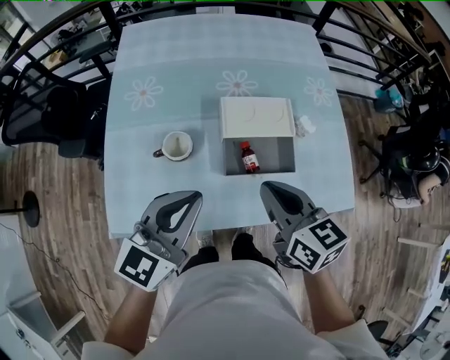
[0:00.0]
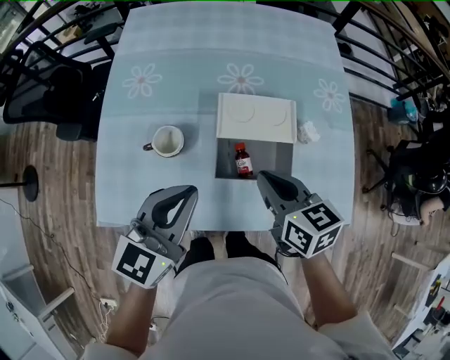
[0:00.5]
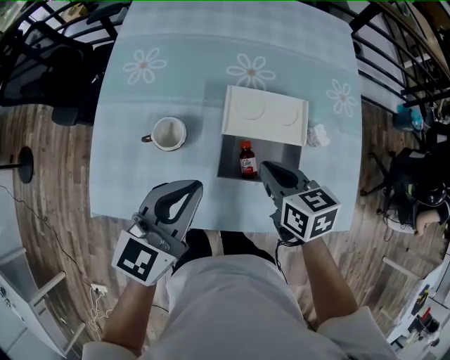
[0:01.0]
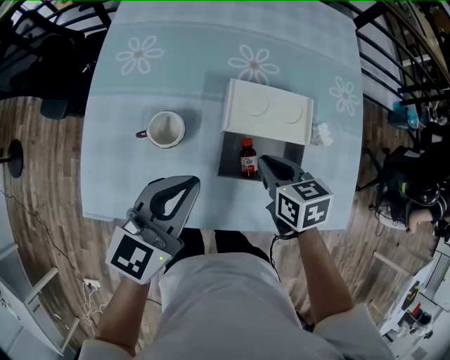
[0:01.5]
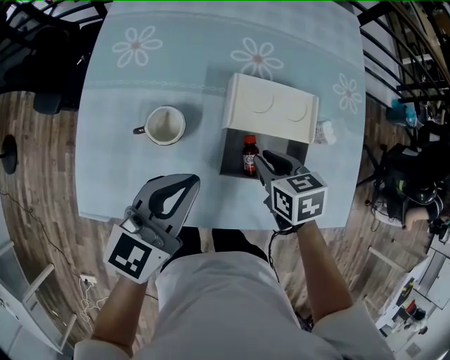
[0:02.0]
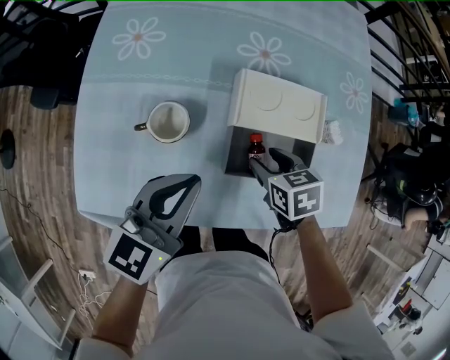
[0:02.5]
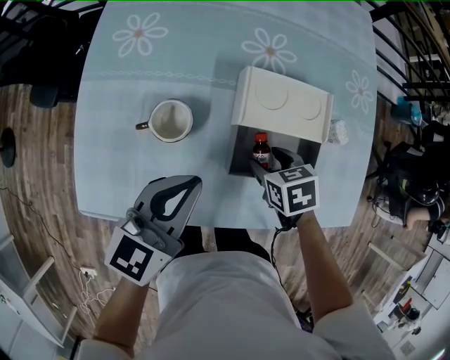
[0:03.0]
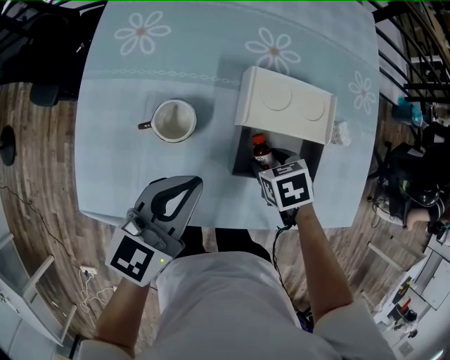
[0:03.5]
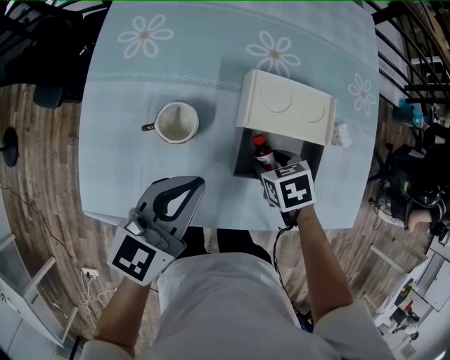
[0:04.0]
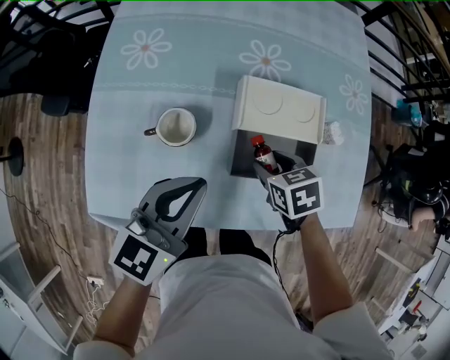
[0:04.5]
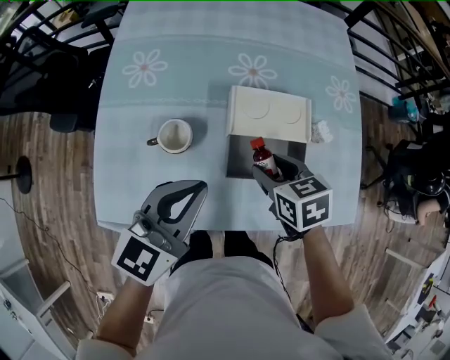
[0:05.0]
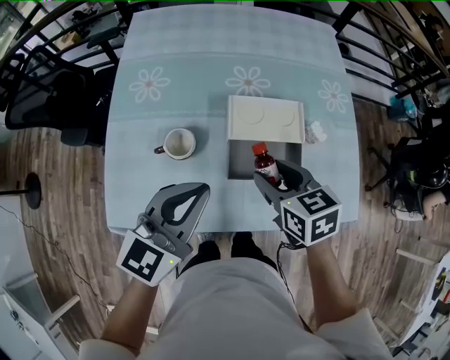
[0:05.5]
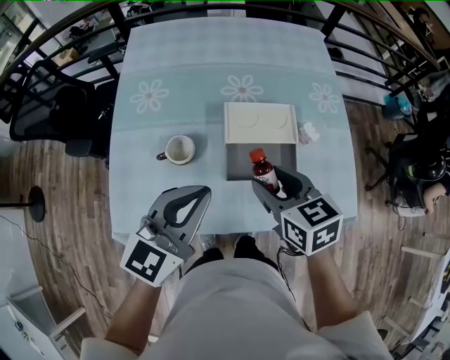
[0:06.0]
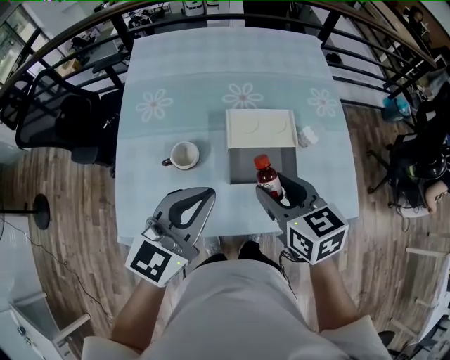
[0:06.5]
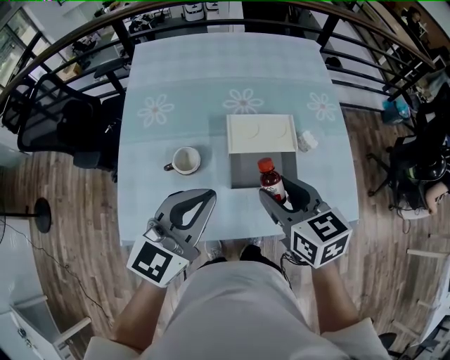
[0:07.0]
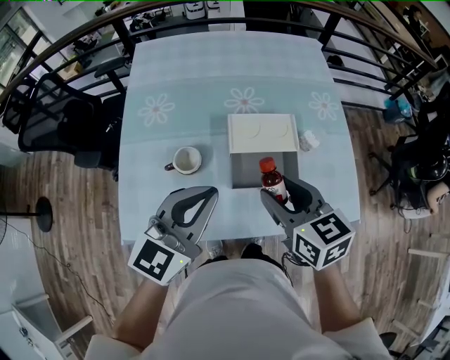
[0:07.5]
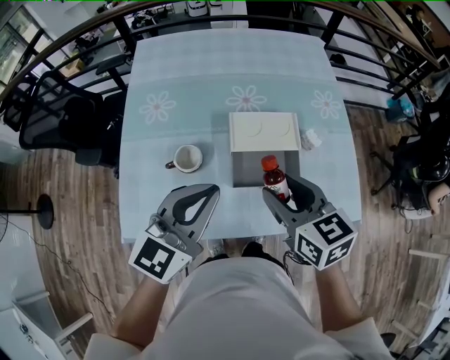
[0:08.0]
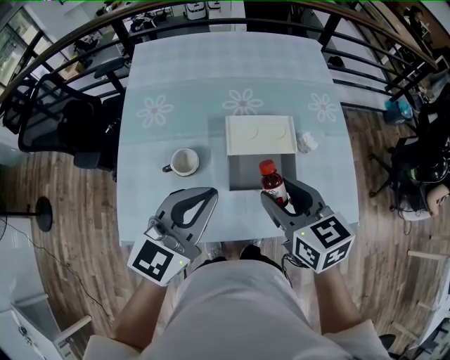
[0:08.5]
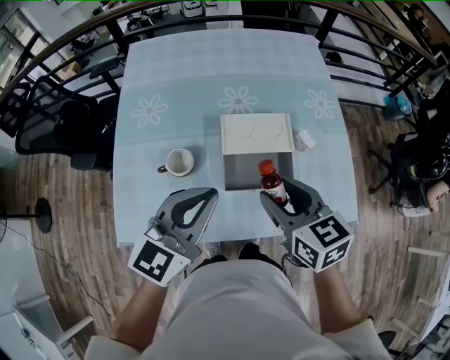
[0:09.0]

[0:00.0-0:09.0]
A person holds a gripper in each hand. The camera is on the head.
0:00.0 to 0:02.0: The right gripper travels downward and forward by about 20 cm, and swivels approximately 30 degrees. The left gripper moves downward and forward, about 10 cm.
0:02.0 to 0:04.5: The right gripper opens up.
0:04.5 to 0:07.0: The right gripper travels upward by approximately 20 cm, and tilts its fingers some 30 degrees upward, while the left gripper moves upward, some 10 cm.
0:07.0 to 0:09.0: The grippers make only small movements.

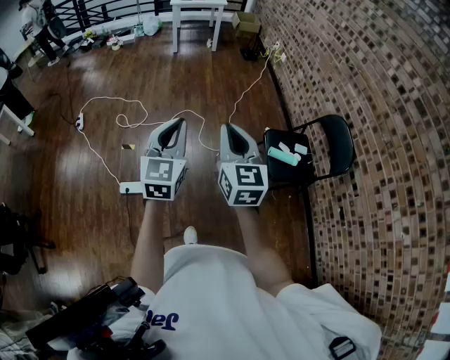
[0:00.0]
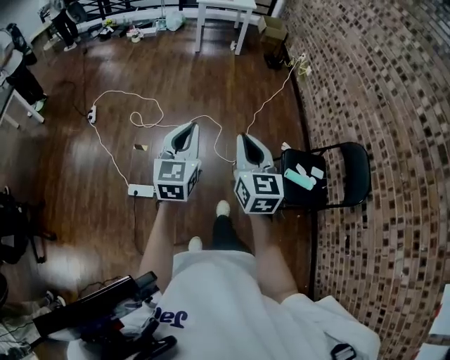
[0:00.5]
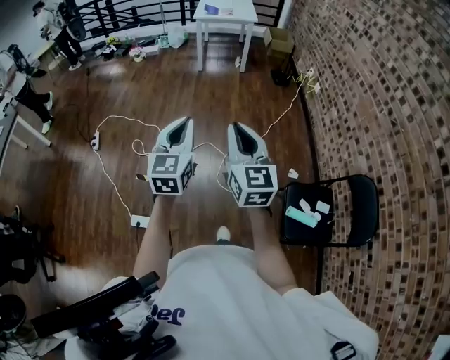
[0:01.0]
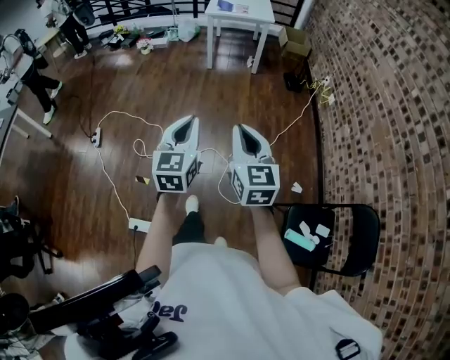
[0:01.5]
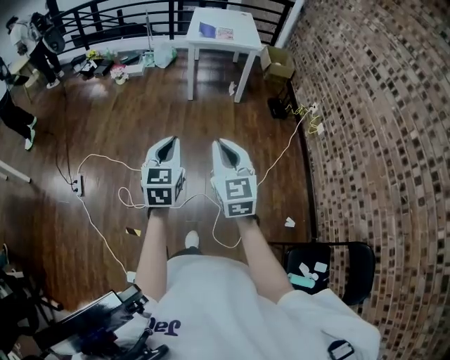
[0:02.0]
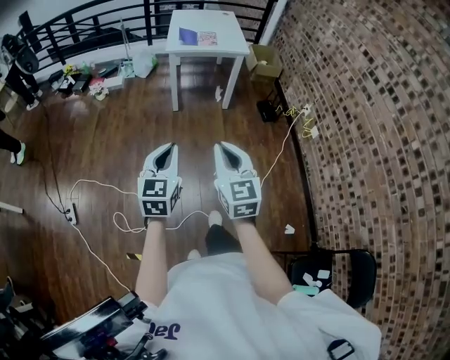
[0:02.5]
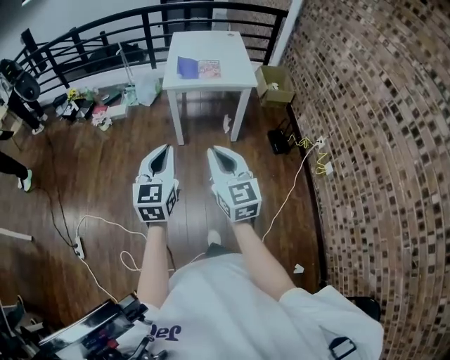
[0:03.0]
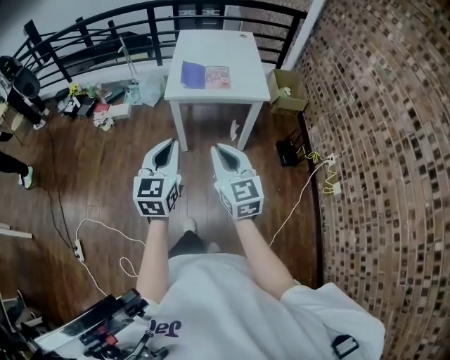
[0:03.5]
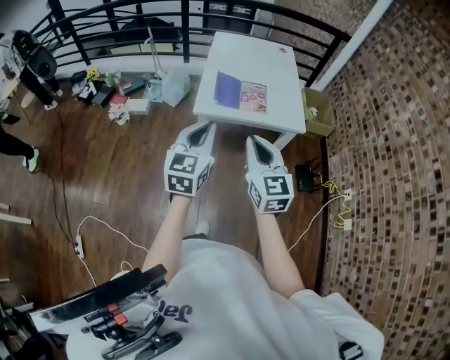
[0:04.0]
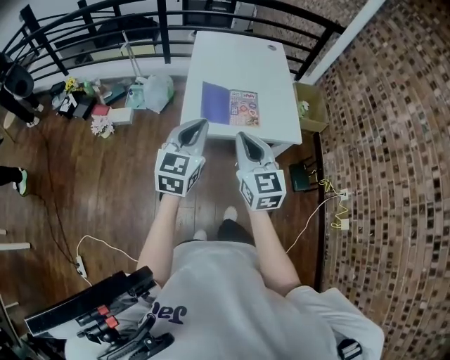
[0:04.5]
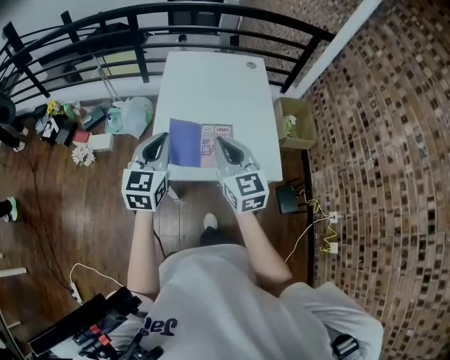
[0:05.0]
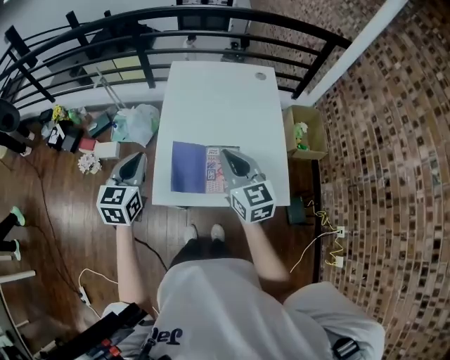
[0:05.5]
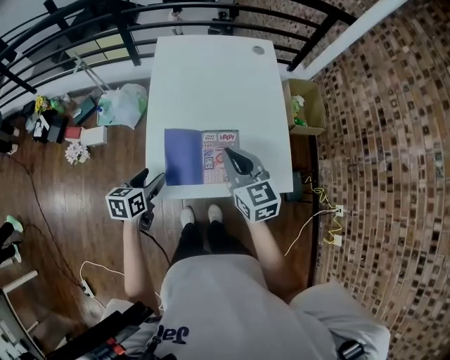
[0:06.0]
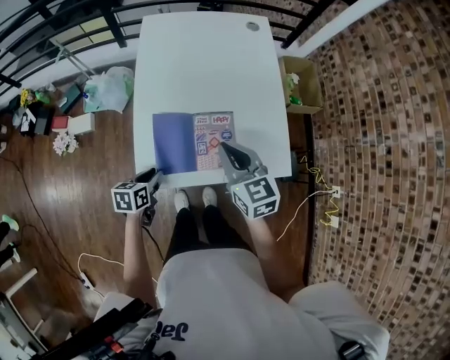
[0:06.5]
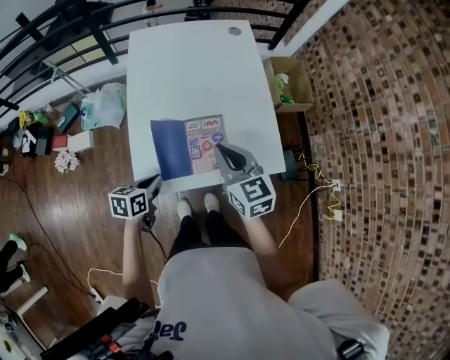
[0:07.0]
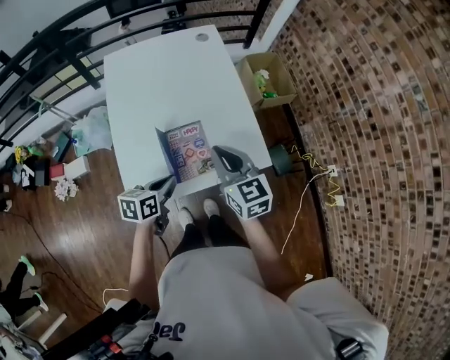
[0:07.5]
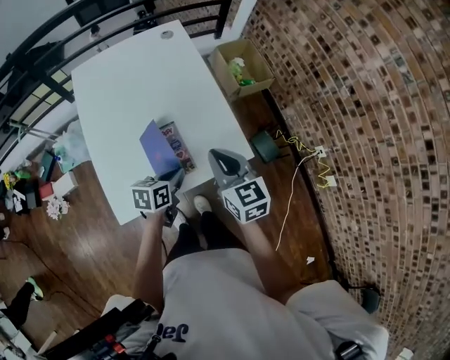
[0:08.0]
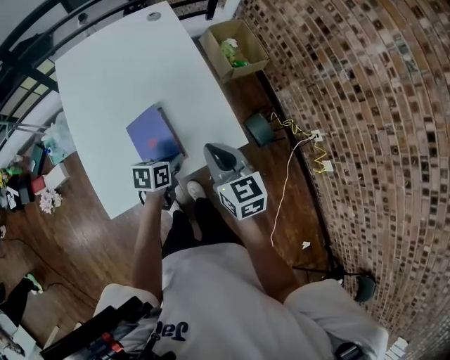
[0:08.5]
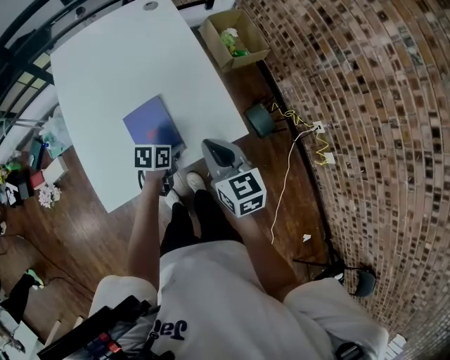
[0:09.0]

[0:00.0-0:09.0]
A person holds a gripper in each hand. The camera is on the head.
0:00.0 to 0:02.0: The two grippers travel together, forward, some 80 cm.
0:02.0 to 0:04.5: The pair of grippers is taken forward, roughly 90 cm.
0:04.5 to 0:07.0: The right gripper travels forward and downward by some 30 cm; the left gripper is displaced downward and forward by approximately 30 cm, tips its fingers downward by roughly 30 degrees, and opens, then closes again.
0:07.0 to 0:09.0: The right gripper shifts some 15 cm to the right, while the left gripper moves to the right and forward, about 25 cm, and swivels some 30 degrees.

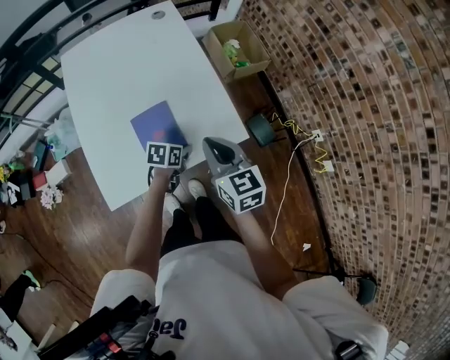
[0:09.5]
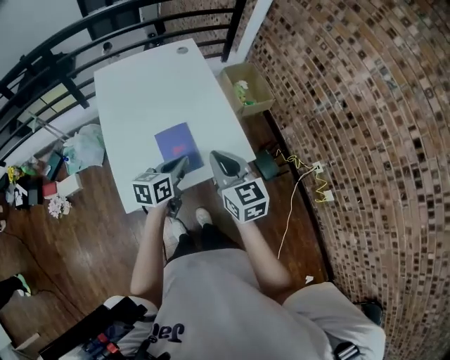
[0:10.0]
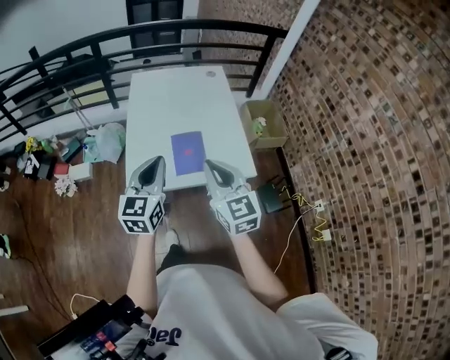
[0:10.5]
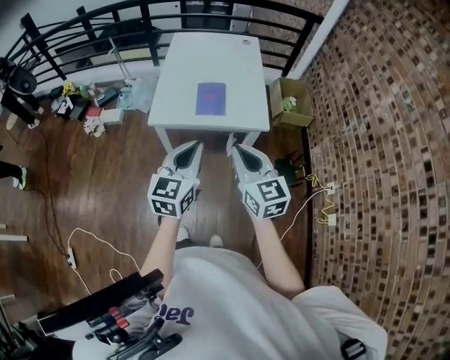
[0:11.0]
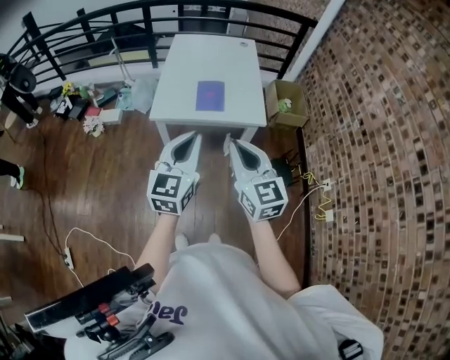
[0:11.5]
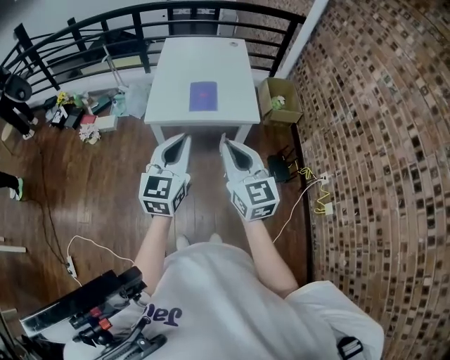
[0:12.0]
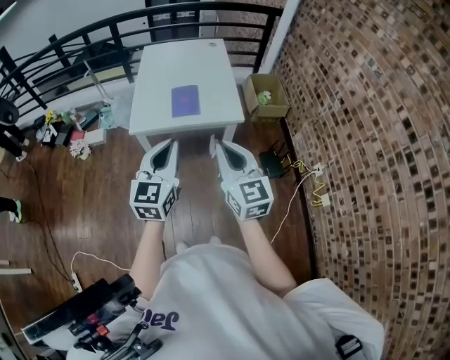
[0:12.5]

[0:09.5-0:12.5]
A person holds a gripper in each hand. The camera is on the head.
0:09.5 to 0:11.0: The right gripper moves approximately 30 cm, and turns by roughly 30 degrees; the left gripper travels upward by approximately 35 cm, and angles its fingers upward, by about 40 degrees.
0:11.0 to 0:12.5: The right gripper heads backward, covering about 5 cm. Meanwhile the left gripper moves approximately 5 cm.

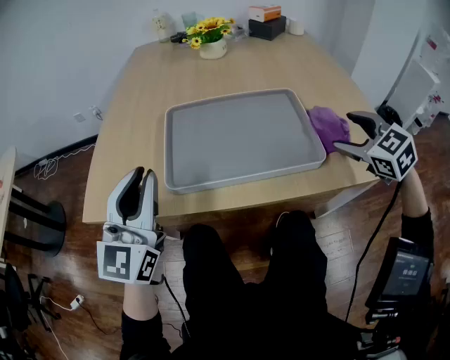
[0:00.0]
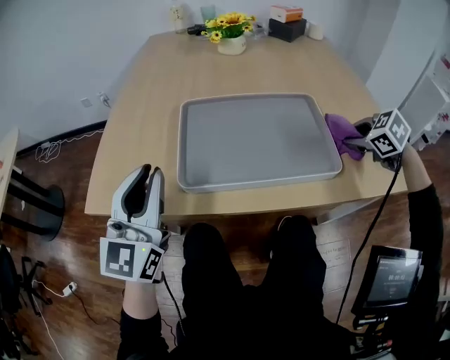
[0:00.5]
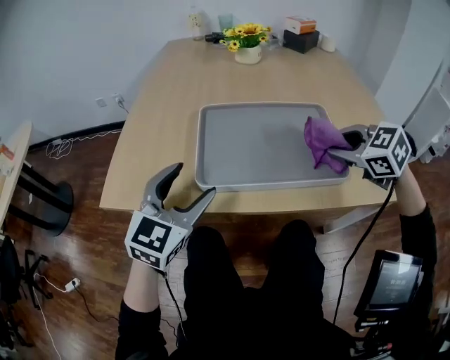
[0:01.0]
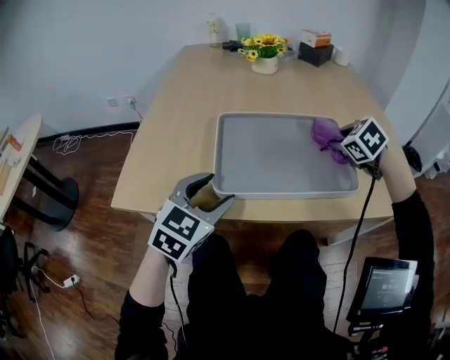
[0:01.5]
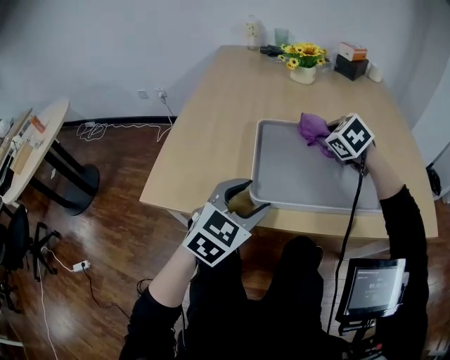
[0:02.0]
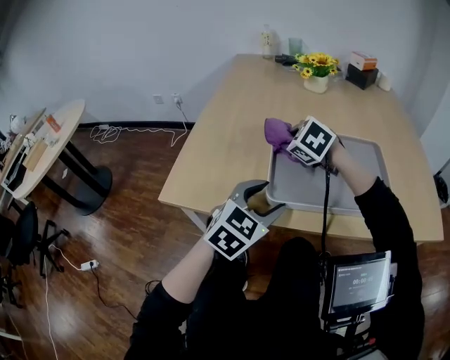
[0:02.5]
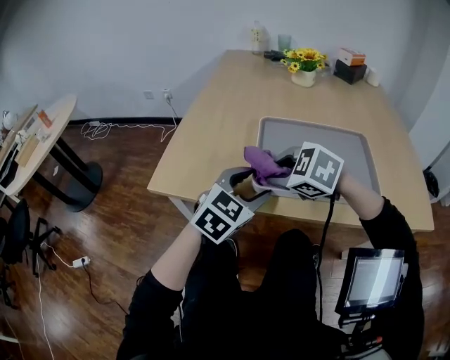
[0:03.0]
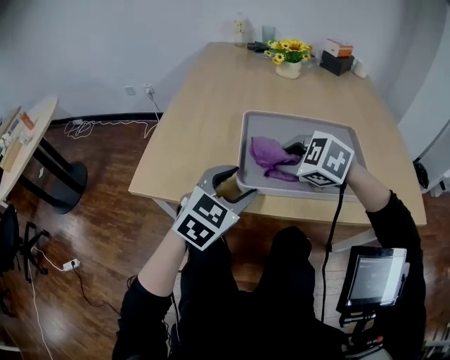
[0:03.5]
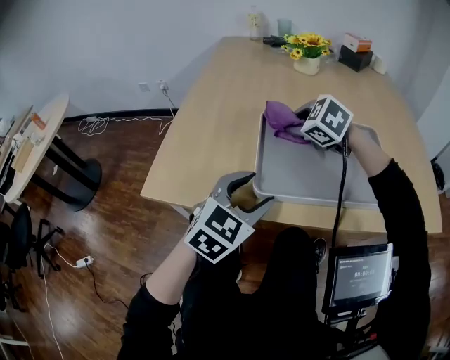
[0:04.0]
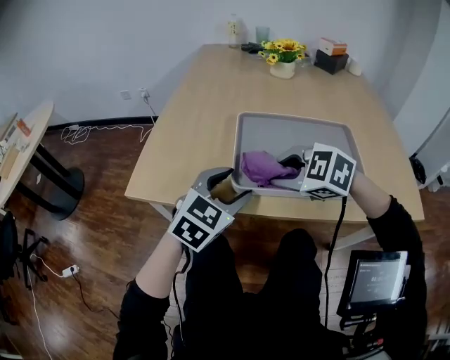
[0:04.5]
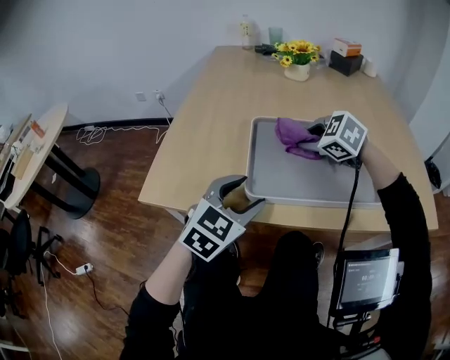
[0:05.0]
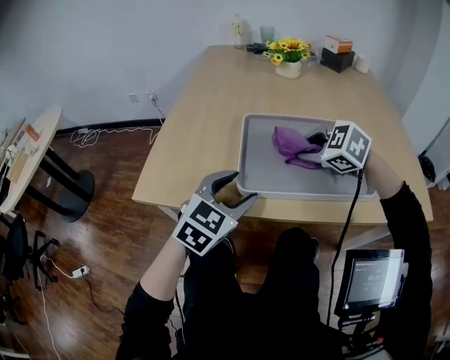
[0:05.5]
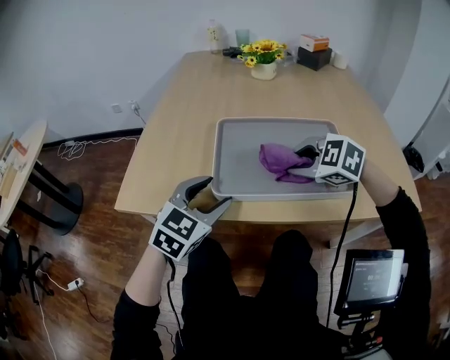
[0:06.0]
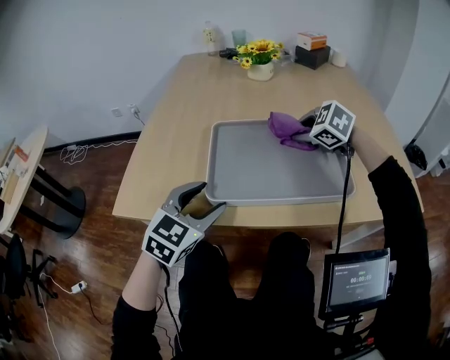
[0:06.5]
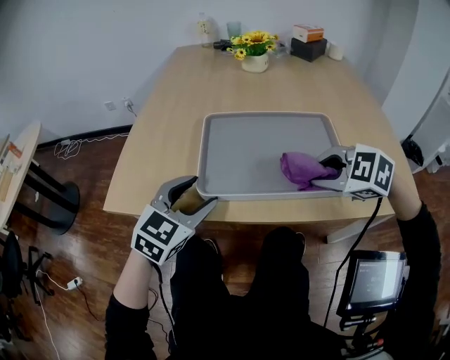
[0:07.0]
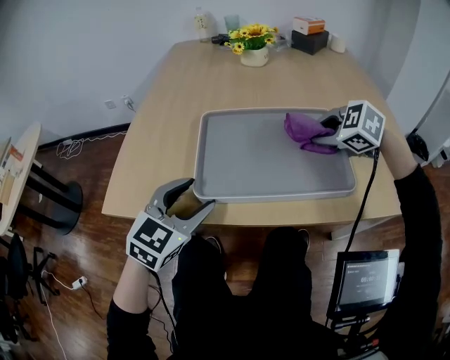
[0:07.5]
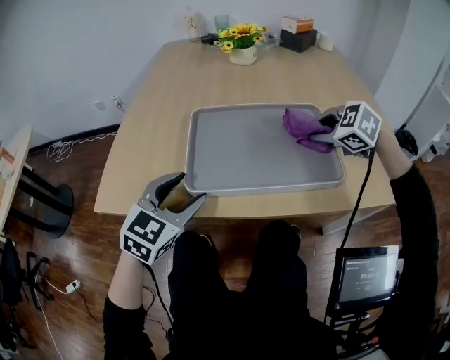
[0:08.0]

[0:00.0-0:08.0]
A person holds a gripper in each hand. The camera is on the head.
0:00.0 to 0:02.0: The right gripper shifts approximately 30 cm to the left and forward, and closes its fingers, while the left gripper moves downward, some 10 cm, tilts its fingers some 30 degrees downward, and opens its fingers.
0:02.0 to 0:04.0: The right gripper shifts about 10 cm to the left.
0:04.0 to 0:06.0: The right gripper swings forward and backward, about 15 cm each way, with 2 reversals.
0:06.0 to 0:08.0: The right gripper swings forward and backward, roughly 15 cm each way, with 2 reversals.
